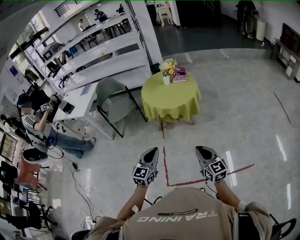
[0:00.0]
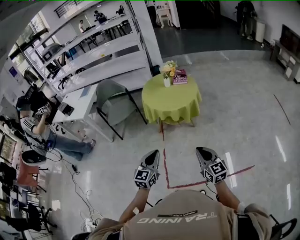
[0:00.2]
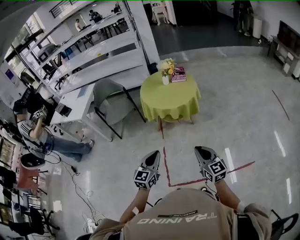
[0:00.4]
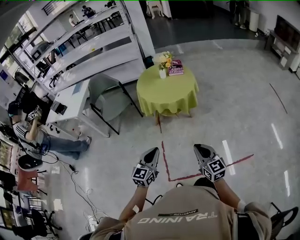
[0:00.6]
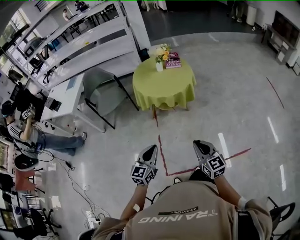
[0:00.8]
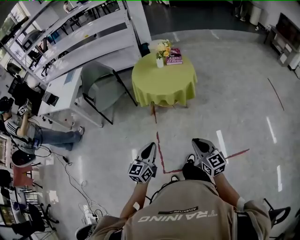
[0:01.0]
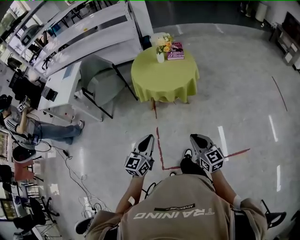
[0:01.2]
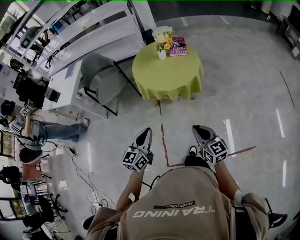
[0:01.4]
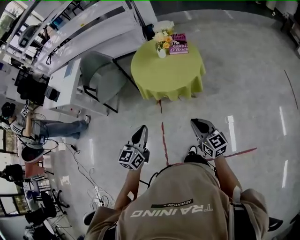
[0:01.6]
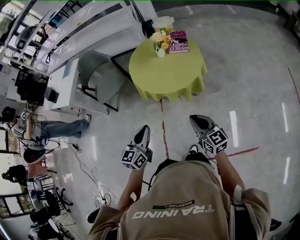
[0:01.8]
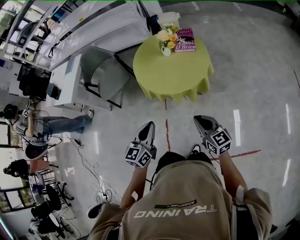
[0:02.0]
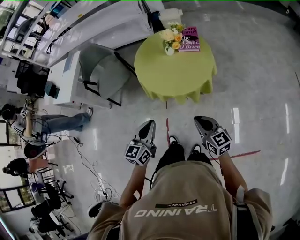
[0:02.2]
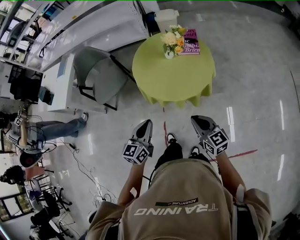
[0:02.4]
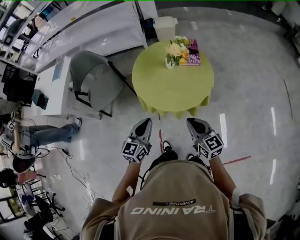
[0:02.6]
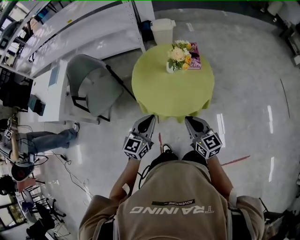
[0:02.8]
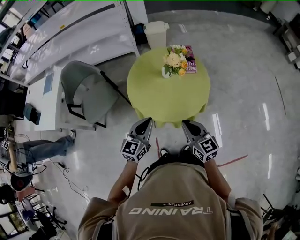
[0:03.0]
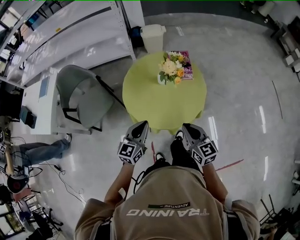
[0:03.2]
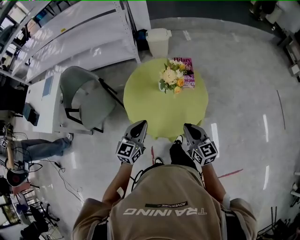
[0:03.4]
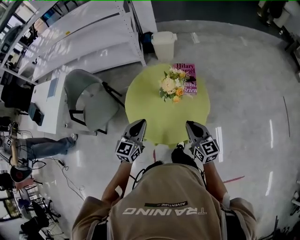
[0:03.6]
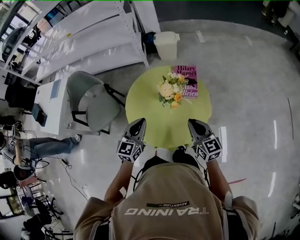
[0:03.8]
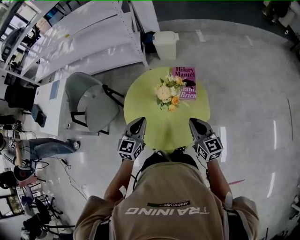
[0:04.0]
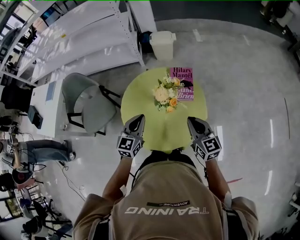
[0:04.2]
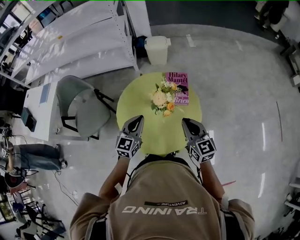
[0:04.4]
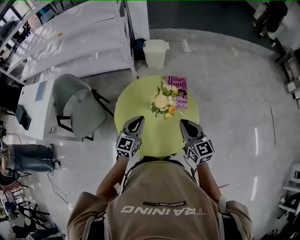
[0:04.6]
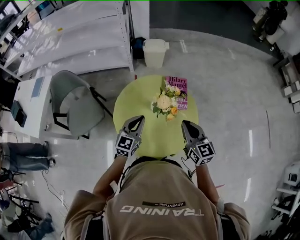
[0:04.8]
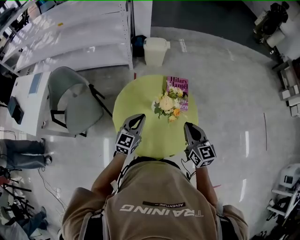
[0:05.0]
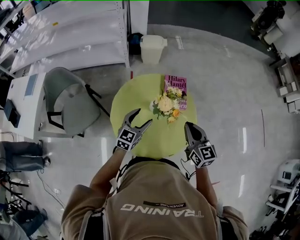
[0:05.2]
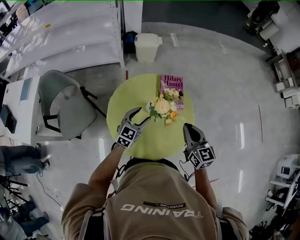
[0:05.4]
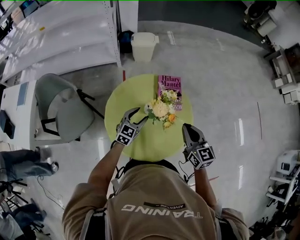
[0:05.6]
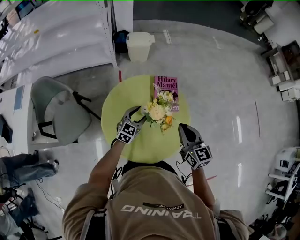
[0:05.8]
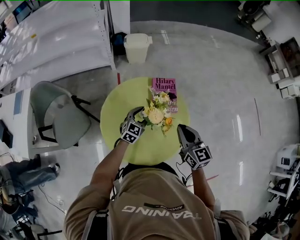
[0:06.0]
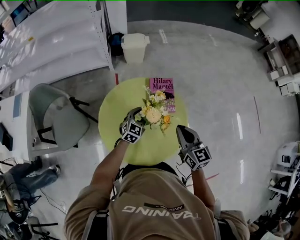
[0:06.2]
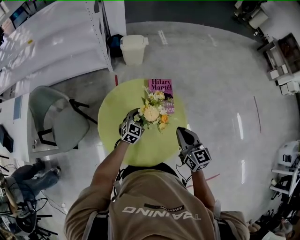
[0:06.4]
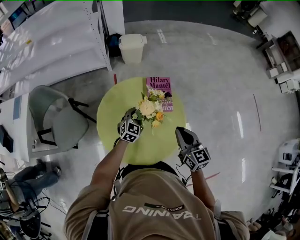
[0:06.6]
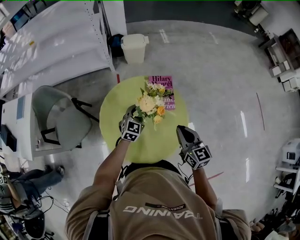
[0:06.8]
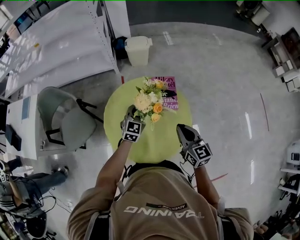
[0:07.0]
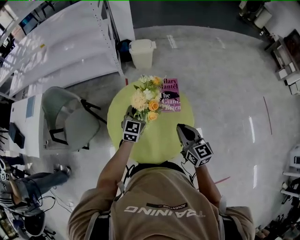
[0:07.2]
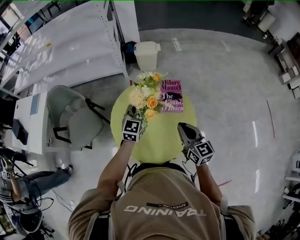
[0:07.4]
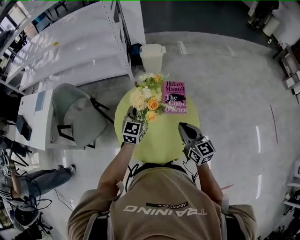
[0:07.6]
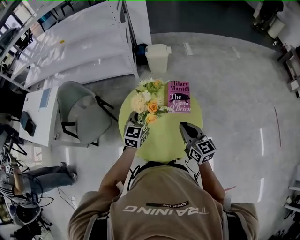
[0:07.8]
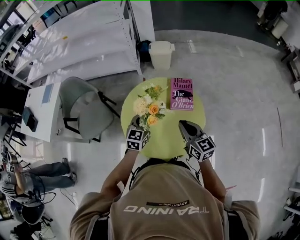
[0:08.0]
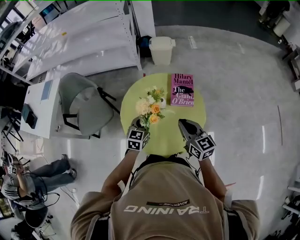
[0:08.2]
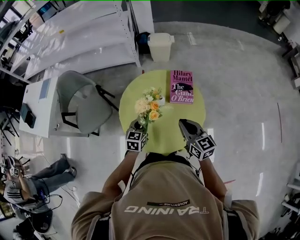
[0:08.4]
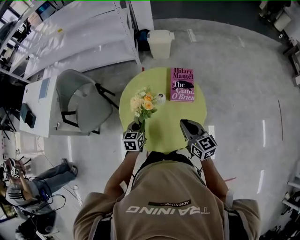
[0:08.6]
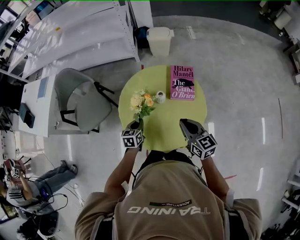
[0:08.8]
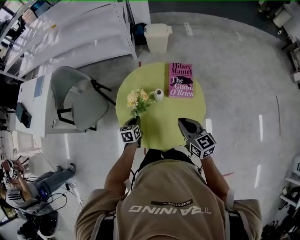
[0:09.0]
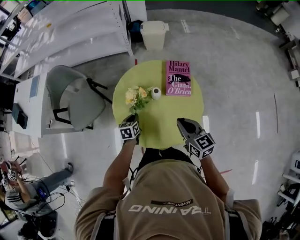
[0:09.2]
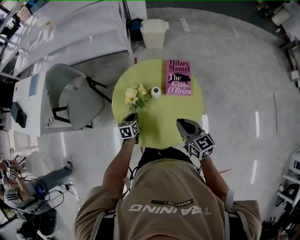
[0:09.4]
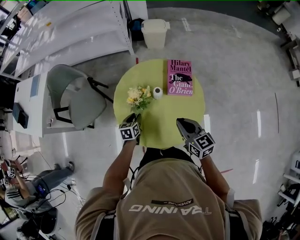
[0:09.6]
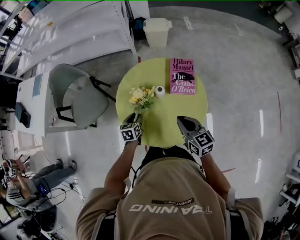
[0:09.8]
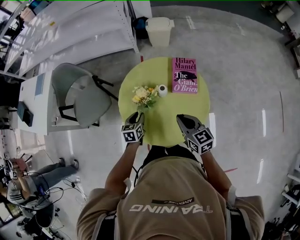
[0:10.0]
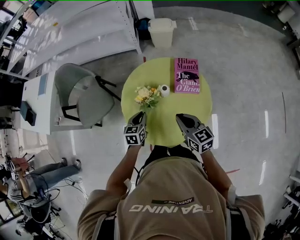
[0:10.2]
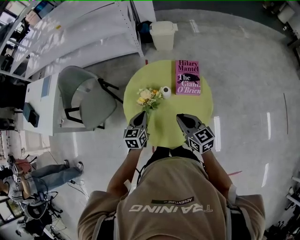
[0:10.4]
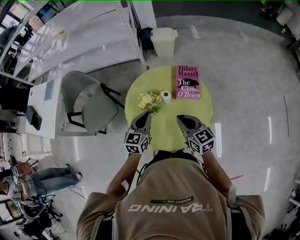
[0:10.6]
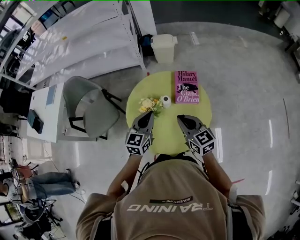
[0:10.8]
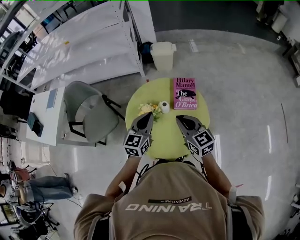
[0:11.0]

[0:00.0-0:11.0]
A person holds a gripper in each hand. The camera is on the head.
0:00.0 to 0:01.6: Both grippers move forward, about 25 cm.
0:01.6 to 0:03.2: The grippers both shift forward by about 35 cm.
0:03.2 to 0:04.8: Both grippers travel together forward, roughly 20 cm.
0:04.8 to 0:06.2: The right gripper moves forward, approximately 5 cm; the left gripper moves forward, downward and to the right, about 20 cm, swivels approximately 20 degrees, and opens up.
0:06.2 to 0:07.8: The left gripper moves upward and backward, about 20 cm, swivels some 20 degrees, and closes up. Meanwhile the right gripper moves backward, roughly 5 cm.
0:07.8 to 0:09.4: The left gripper is displaced downward by approximately 25 cm, and tips its fingers downward by roughly 30 degrees, while the right gripper is displaced downward by roughly 5 cm.
0:09.4 to 0:11.0: The left gripper travels upward by approximately 30 cm, tilts its fingers some 30 degrees upward, and opens and closes again, while the right gripper travels upward by roughly 10 cm.

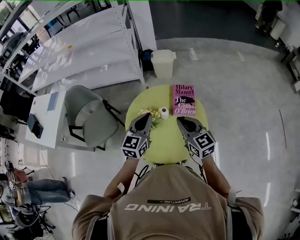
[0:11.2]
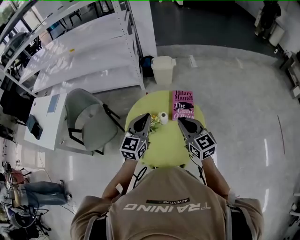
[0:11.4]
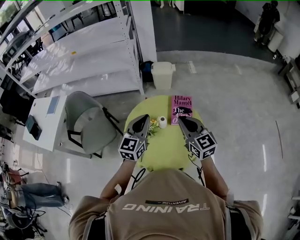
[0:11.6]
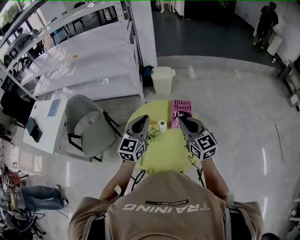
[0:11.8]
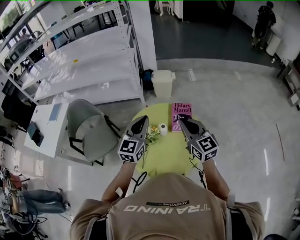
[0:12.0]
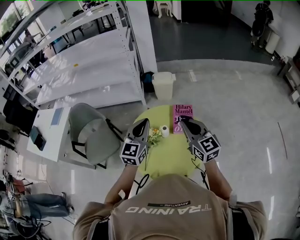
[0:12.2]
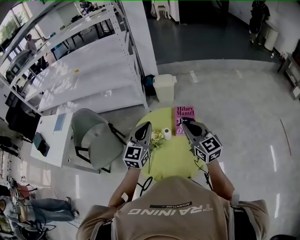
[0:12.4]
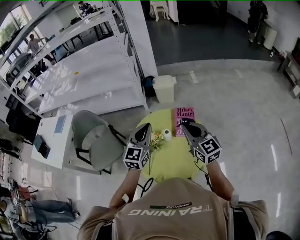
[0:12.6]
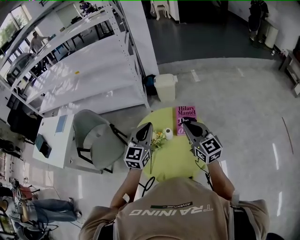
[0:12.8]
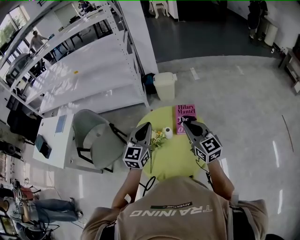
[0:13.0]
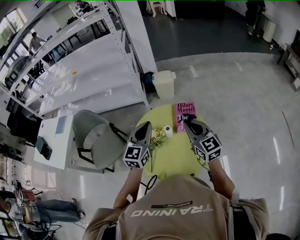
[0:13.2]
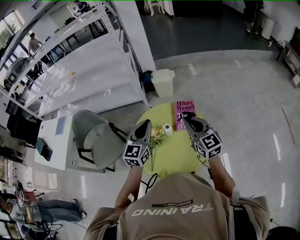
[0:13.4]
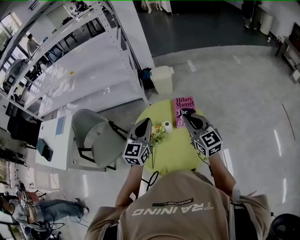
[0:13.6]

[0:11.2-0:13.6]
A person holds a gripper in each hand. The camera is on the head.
0:11.2 to 0:12.4: The grippers both shift upward by about 10 cm.
0:12.4 to 0:13.6: The grippers move only a little.

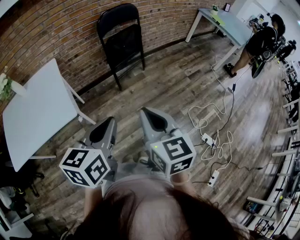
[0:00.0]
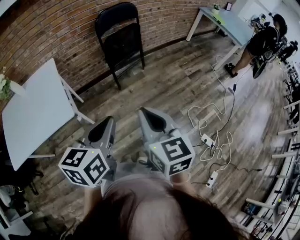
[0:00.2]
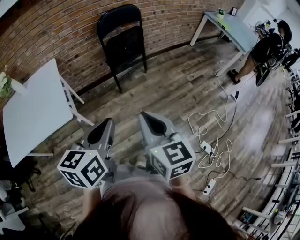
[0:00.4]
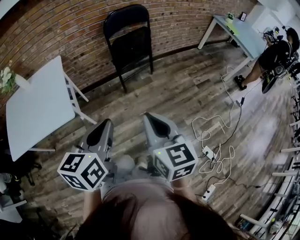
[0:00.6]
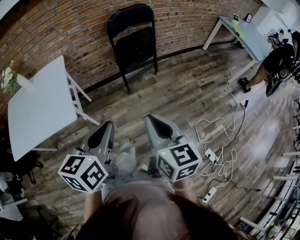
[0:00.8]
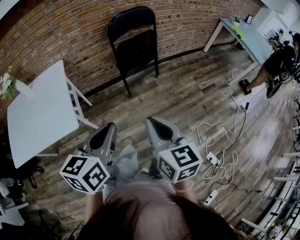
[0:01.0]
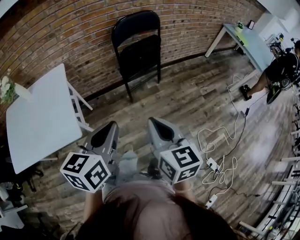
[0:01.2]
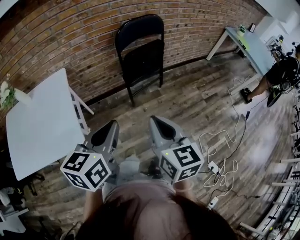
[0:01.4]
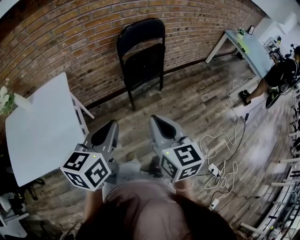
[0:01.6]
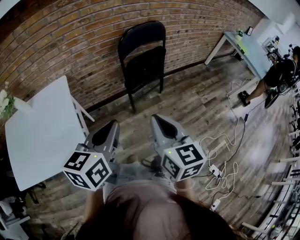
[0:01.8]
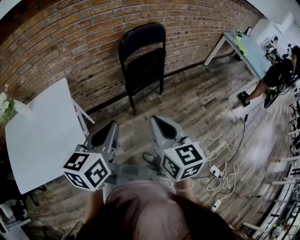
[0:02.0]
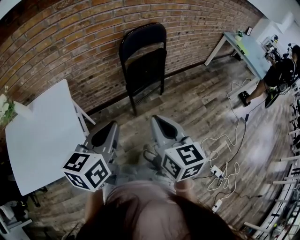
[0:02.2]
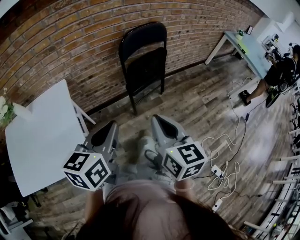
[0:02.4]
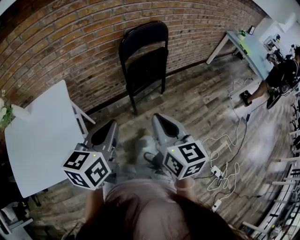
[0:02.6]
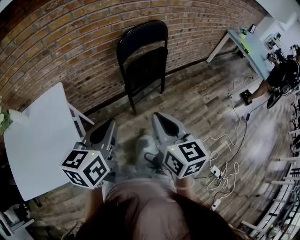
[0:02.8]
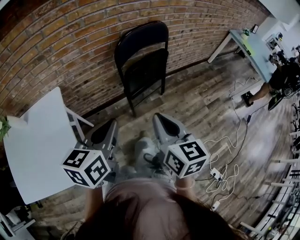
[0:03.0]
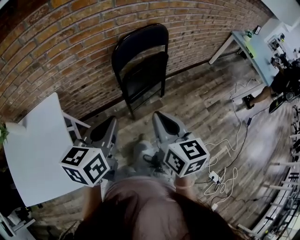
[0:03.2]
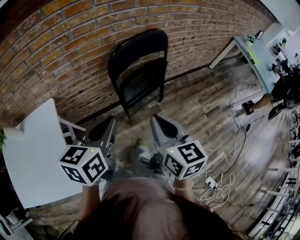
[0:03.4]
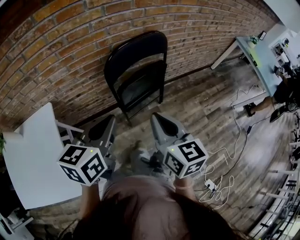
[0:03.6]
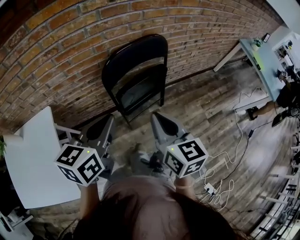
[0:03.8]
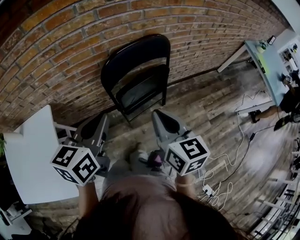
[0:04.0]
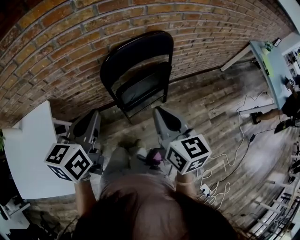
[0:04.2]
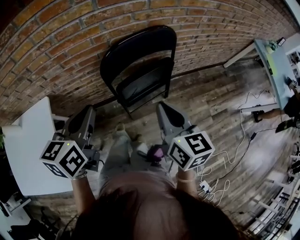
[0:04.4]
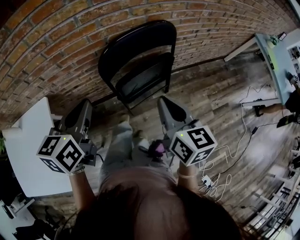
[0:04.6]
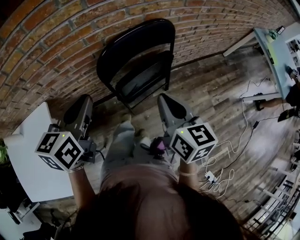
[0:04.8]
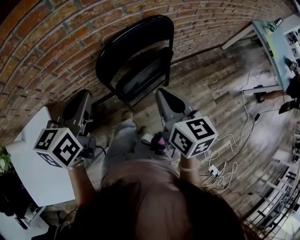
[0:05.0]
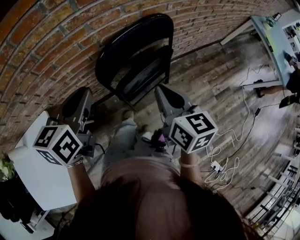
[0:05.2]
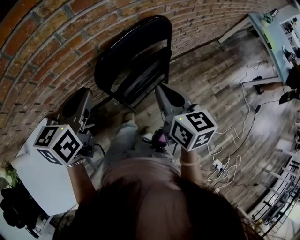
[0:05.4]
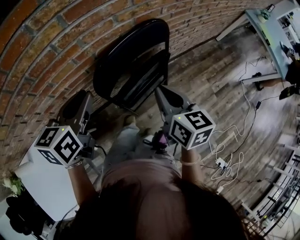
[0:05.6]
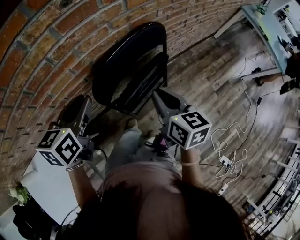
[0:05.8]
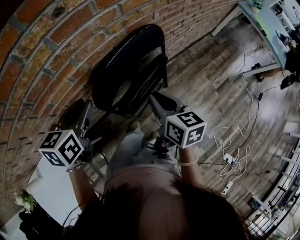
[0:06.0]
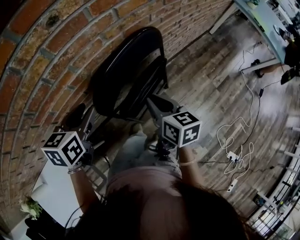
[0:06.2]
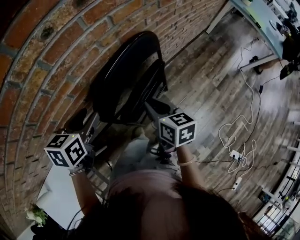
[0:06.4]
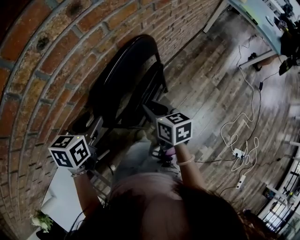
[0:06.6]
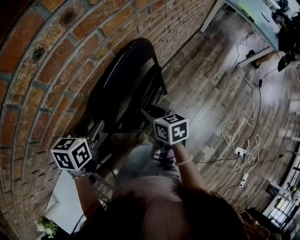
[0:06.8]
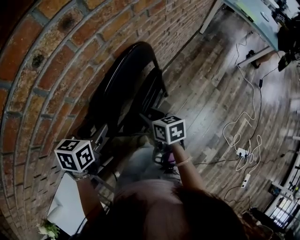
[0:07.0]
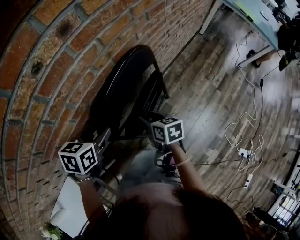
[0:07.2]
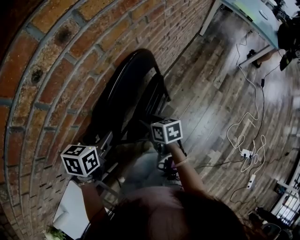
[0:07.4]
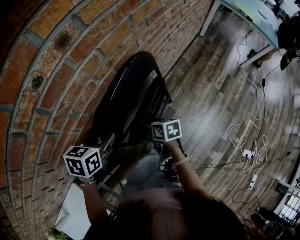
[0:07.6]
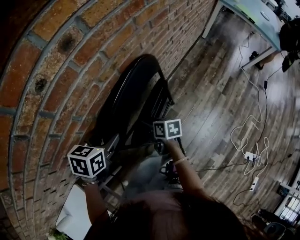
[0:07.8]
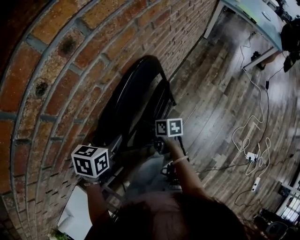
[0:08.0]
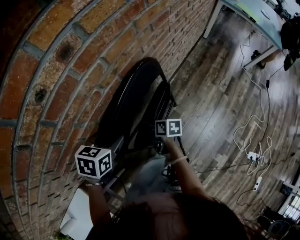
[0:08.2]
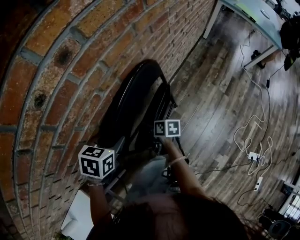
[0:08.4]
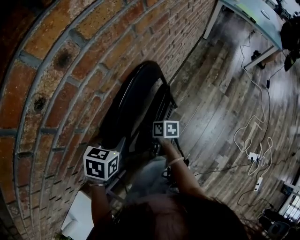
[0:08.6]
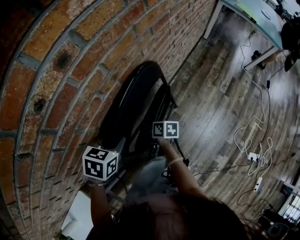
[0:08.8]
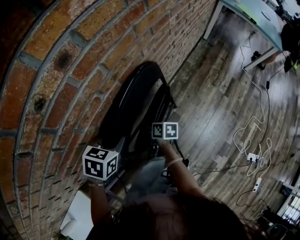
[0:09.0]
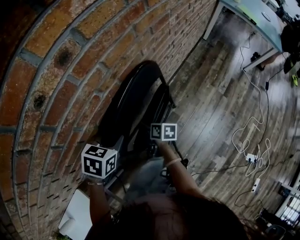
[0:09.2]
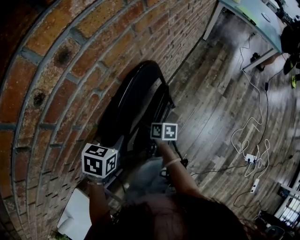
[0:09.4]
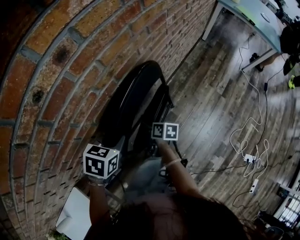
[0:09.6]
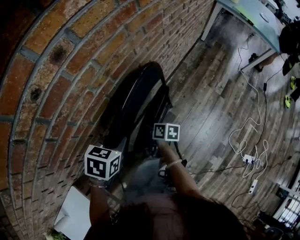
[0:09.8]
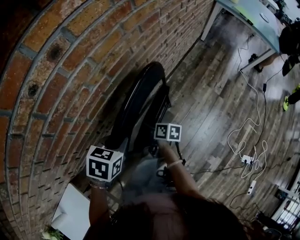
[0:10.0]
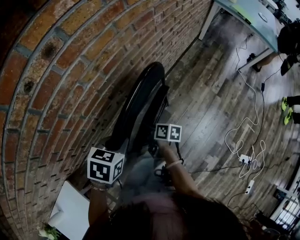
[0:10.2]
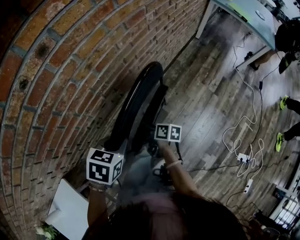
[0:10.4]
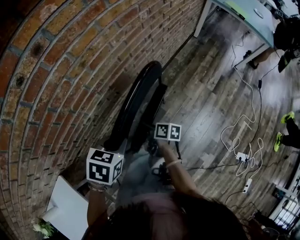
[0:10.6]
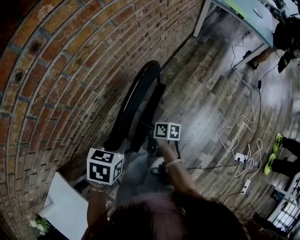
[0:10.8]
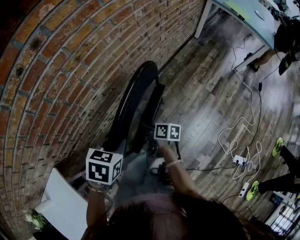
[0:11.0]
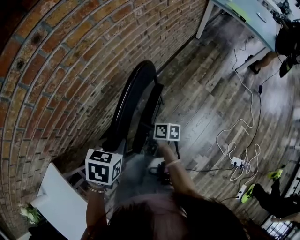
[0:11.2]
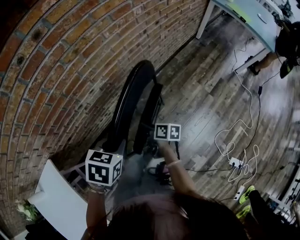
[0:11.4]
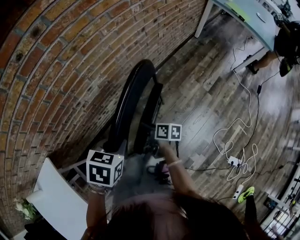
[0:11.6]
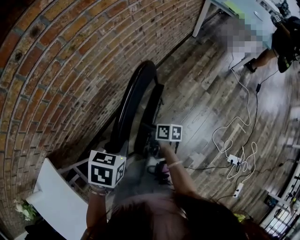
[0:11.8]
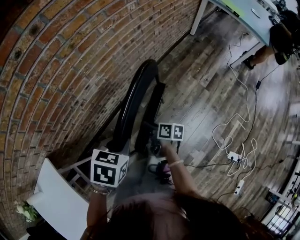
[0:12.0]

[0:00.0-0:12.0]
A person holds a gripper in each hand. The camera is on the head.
0:00.0 to 0:01.6: The grippers both shift forward by about 25 cm.
0:01.6 to 0:03.0: The grippers both shift forward by about 15 cm.
0:03.0 to 0:04.4: The left gripper shifts some 20 cm forward; the right gripper heads forward and to the right, covering some 25 cm.
0:04.4 to 0:06.0: The left gripper is displaced forward by approximately 20 cm, swivels roughly 20 degrees, and opens up. Meanwhile the right gripper travels forward and downward by some 15 cm.
0:06.0 to 0:07.6: The left gripper moves downward, some 10 cm, rotates roughly 30 degrees, and opens up. The right gripper travels downward by roughly 15 cm, rotates approximately 20 degrees, and opens its fingers.
0:07.6 to 0:09.0: The left gripper closes up; the right gripper shifts approximately 5 cm downward.
0:09.0 to 0:10.4: The two grippers go some 10 cm to the right and backward.
0:10.4 to 0:12.0: Both grippers move backward and to the right, roughly 15 cm.
